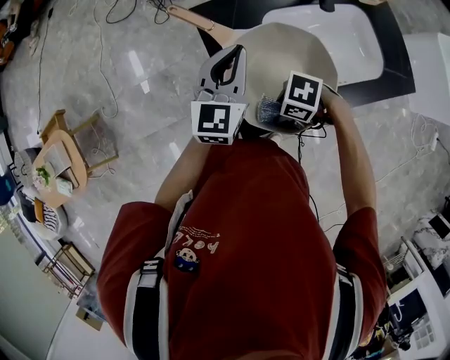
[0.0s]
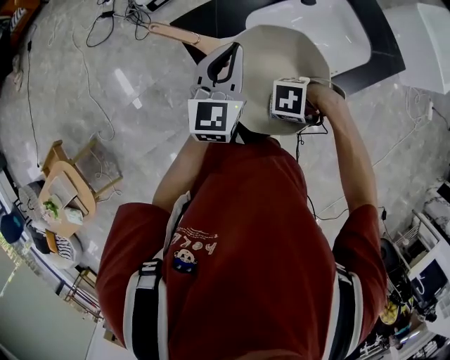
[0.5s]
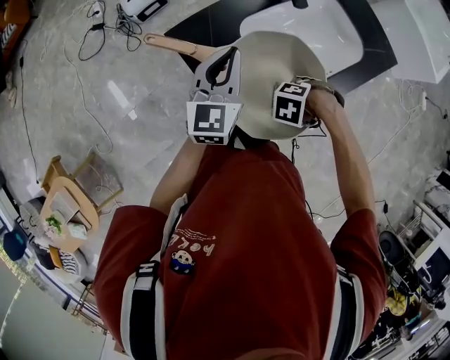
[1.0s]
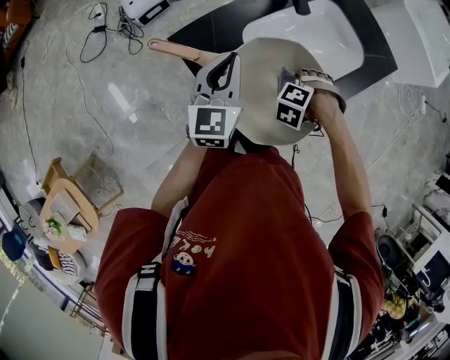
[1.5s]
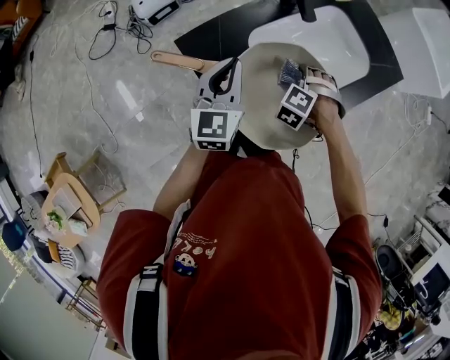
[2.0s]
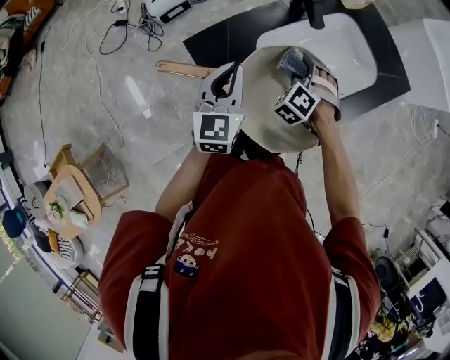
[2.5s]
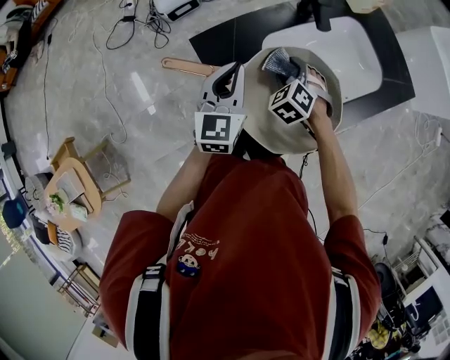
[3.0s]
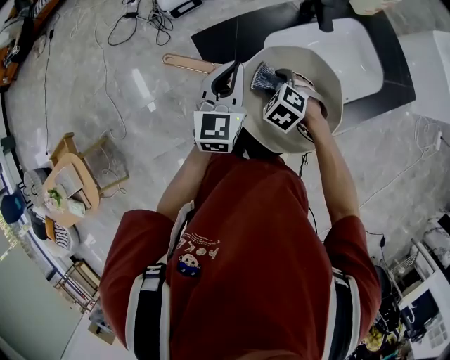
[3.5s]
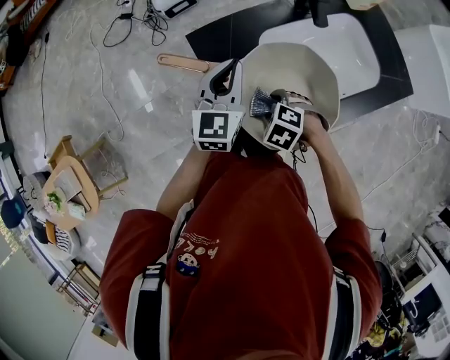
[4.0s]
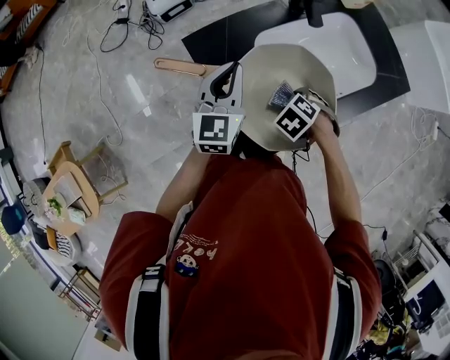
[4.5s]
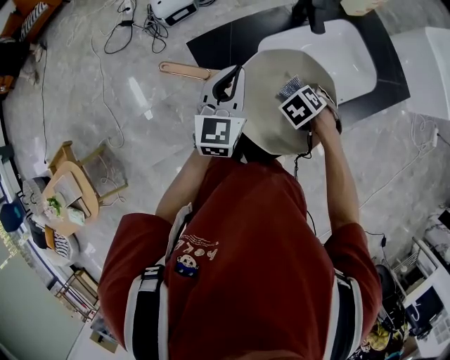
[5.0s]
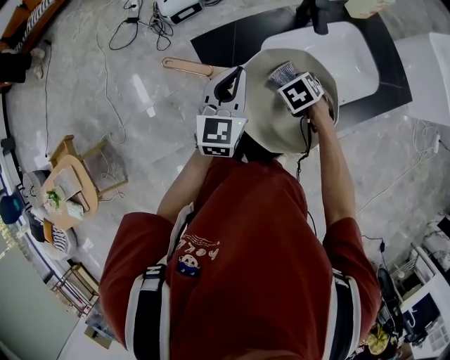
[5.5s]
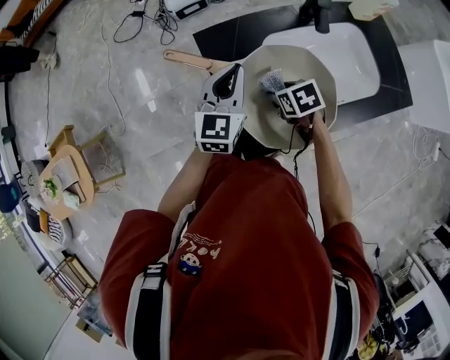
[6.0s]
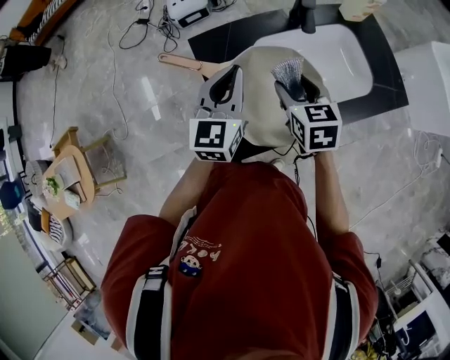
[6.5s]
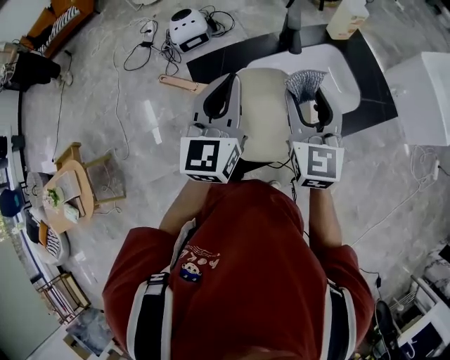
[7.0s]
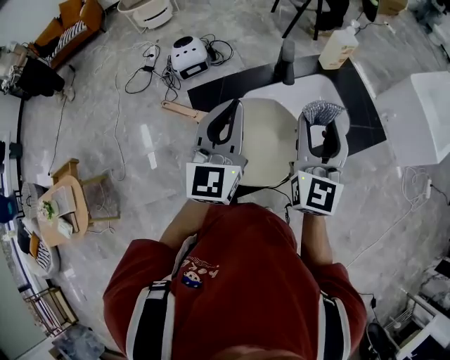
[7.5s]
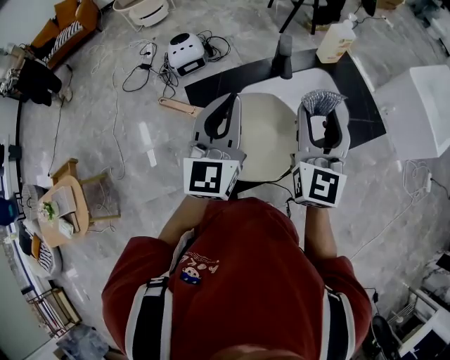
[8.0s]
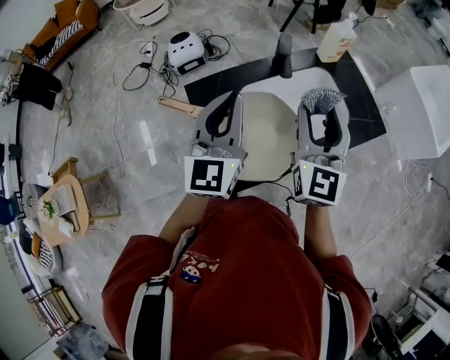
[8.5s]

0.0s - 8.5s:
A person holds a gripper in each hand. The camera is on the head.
0.0s - 2.0s: The left gripper ends up some 5 cm from where it was. Meanwhile the right gripper ends up roughly 20 cm from where it was, and changes its angle by some 60 degrees.
2.0s - 4.0s: The right gripper shifts by some 15 cm, and changes its angle by some 30 degrees.
4.0s - 6.5s: The left gripper goes roughly 5 cm upward; the right gripper is displaced upward by approximately 15 cm, and points its fingers roughly 40 degrees further upward.
6.5s - 8.5s: The right gripper goes approximately 20 cm upward and to the right, and angles its fingers upward, by approximately 40 degrees. The left gripper travels upward by roughly 15 cm.

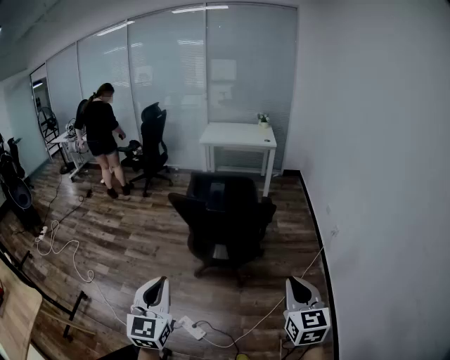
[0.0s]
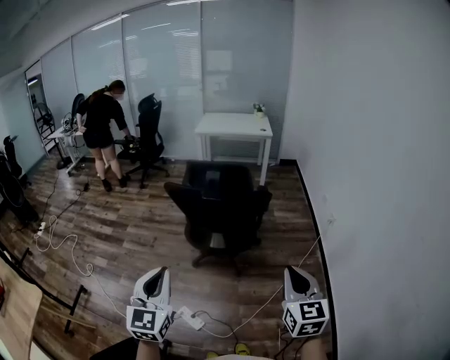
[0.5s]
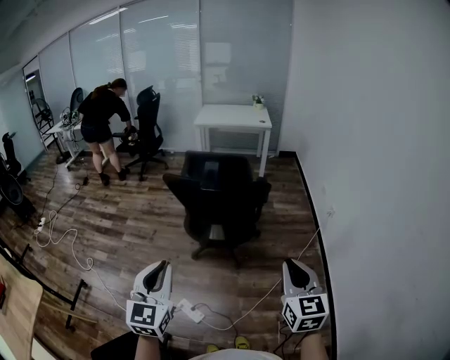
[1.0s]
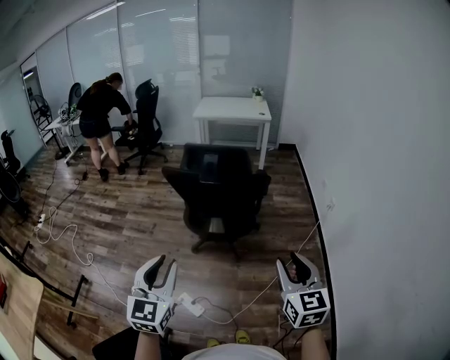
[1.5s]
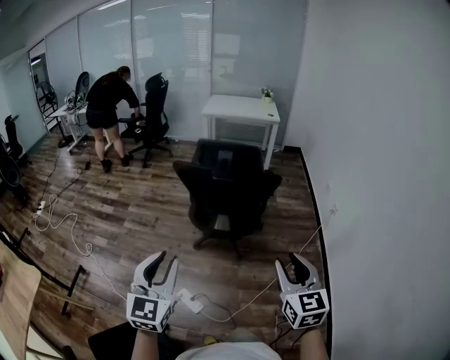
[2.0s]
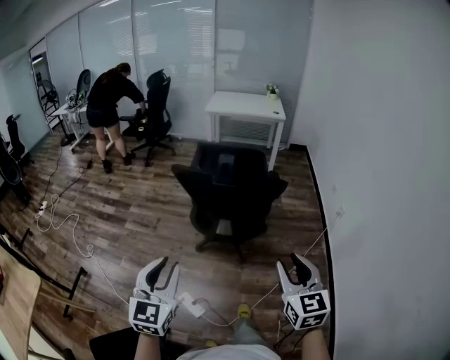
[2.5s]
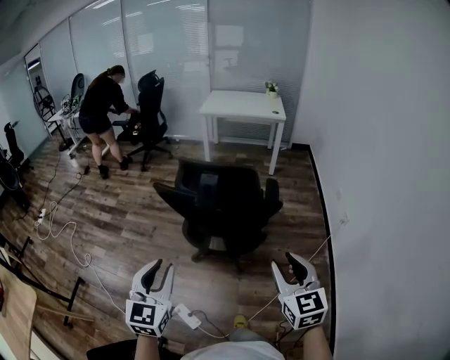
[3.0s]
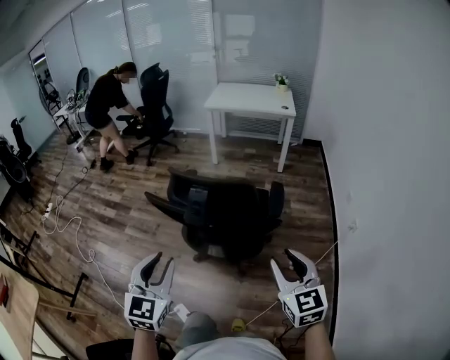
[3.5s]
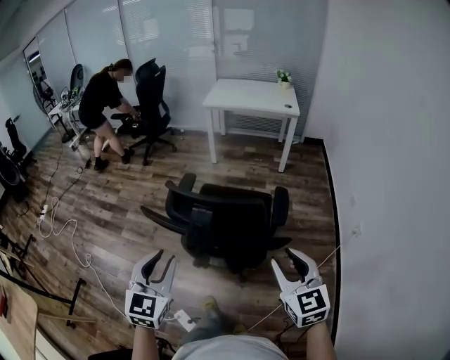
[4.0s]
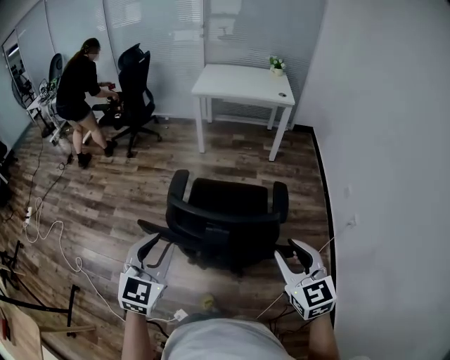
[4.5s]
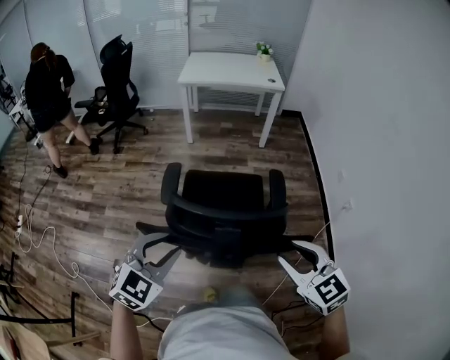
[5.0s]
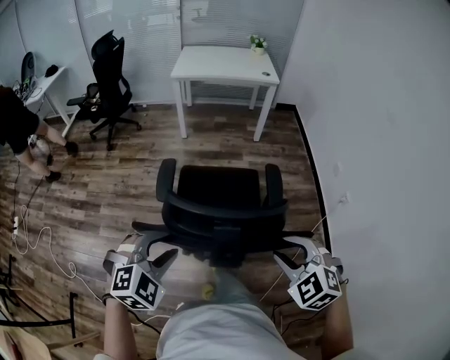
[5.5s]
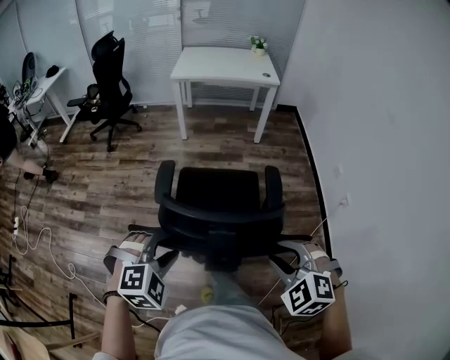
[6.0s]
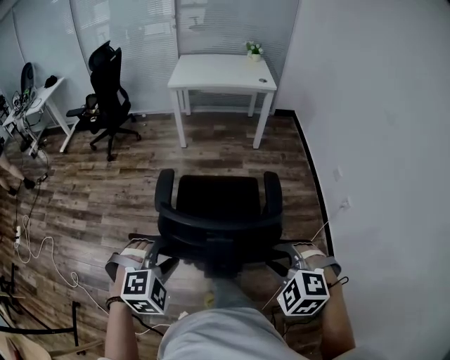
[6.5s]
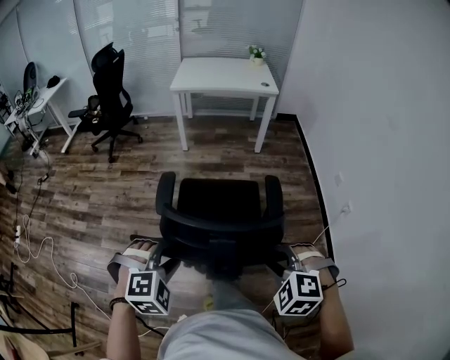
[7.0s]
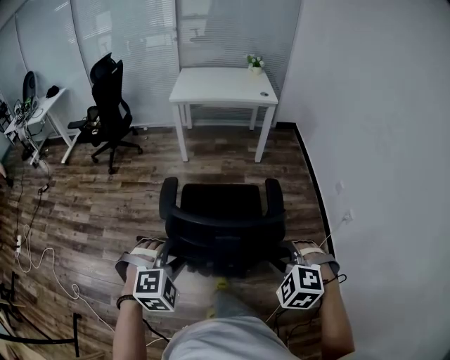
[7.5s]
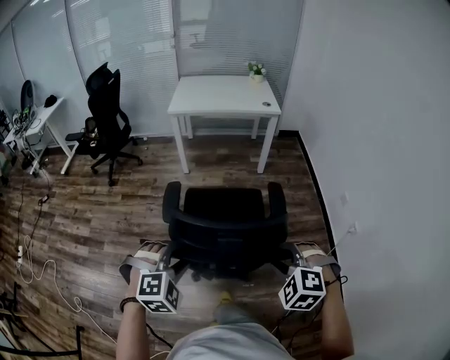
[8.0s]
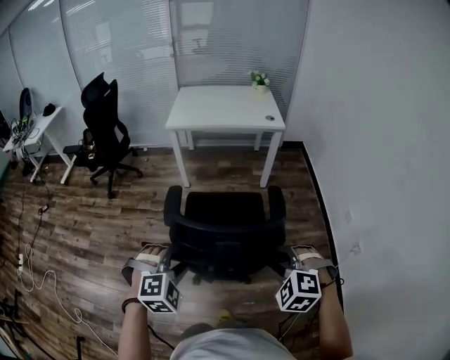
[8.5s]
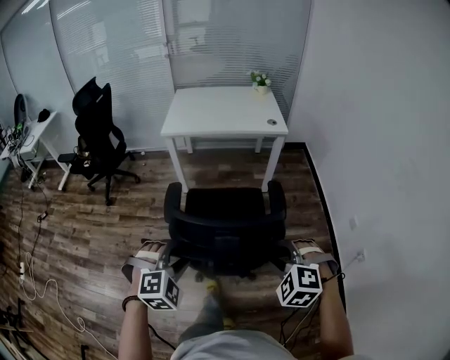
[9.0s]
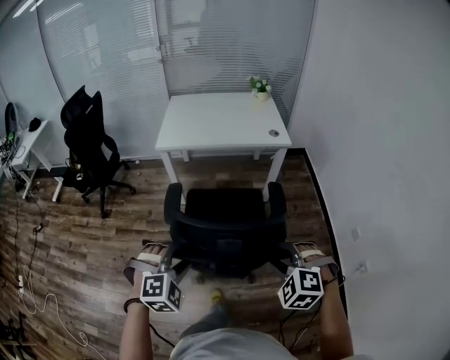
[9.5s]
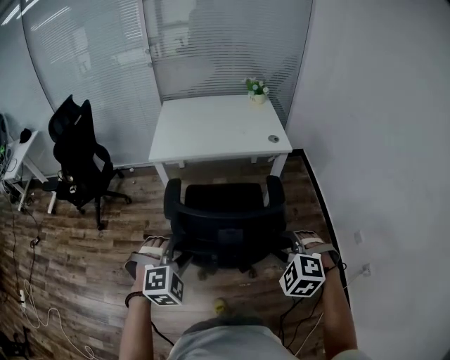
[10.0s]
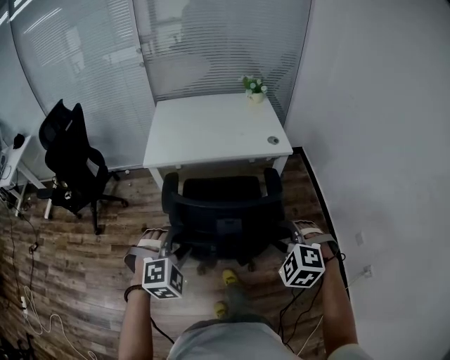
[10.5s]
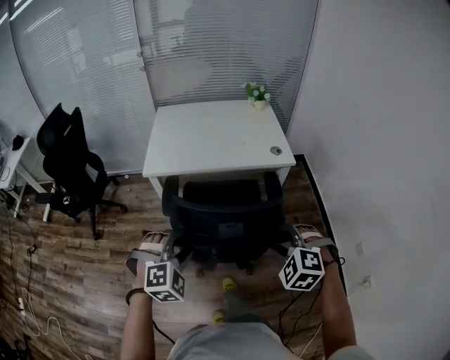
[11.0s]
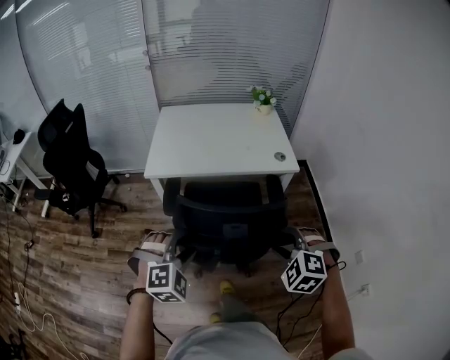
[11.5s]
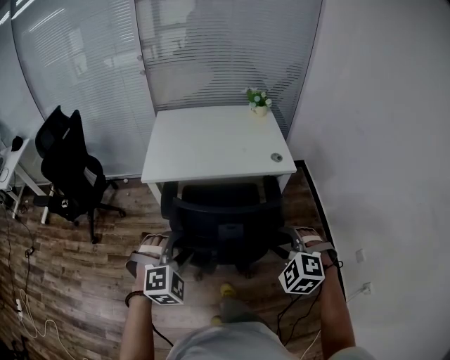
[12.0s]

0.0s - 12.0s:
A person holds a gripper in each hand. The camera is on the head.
0.0s - 2.0s: The right gripper changes place by approximately 5 cm, and opens, while the left gripper opens.
2.0s - 4.0s: The pair of grippers is taken forward, some 50 cm.
4.0s - 6.0s: The right gripper travels to the left, forward and downward by roughly 15 cm, and angles its fingers downward, by approximately 30 degrees; the left gripper goes some 20 cm forward, downward and to the left, and points its fingers roughly 40 degrees further downward.
6.0s - 8.0s: Both grippers travel together forward, approximately 20 cm.
8.0s - 10.0s: The pair of grippers is taken forward, roughly 50 cm.
10.0s - 12.0s: The grippers both shift forward by about 20 cm.

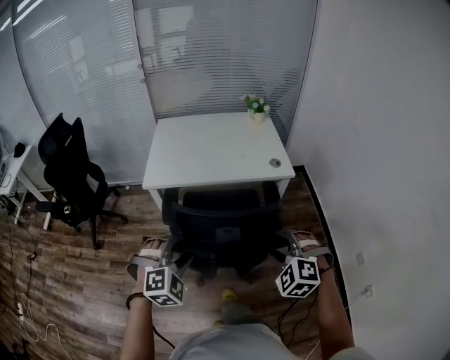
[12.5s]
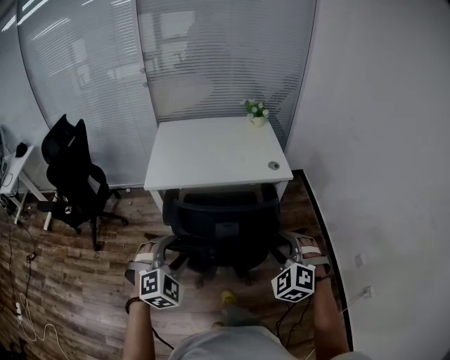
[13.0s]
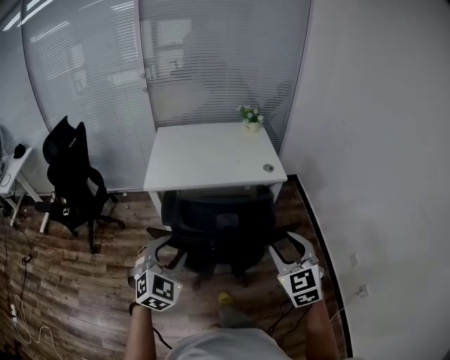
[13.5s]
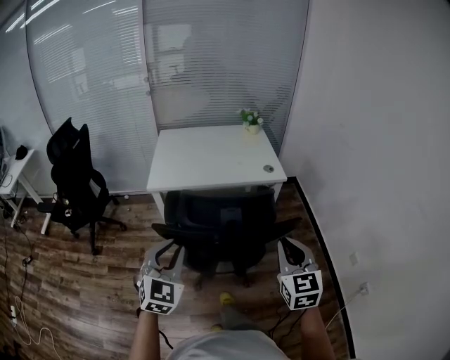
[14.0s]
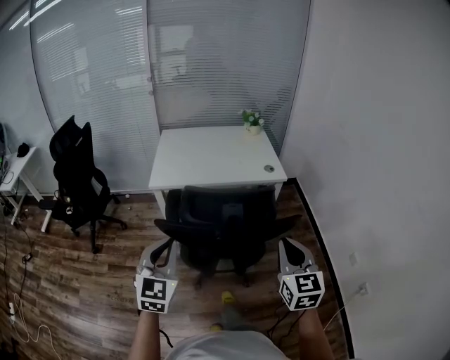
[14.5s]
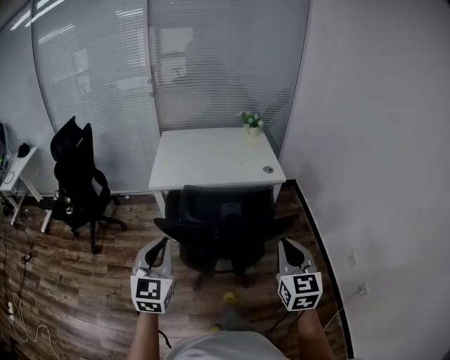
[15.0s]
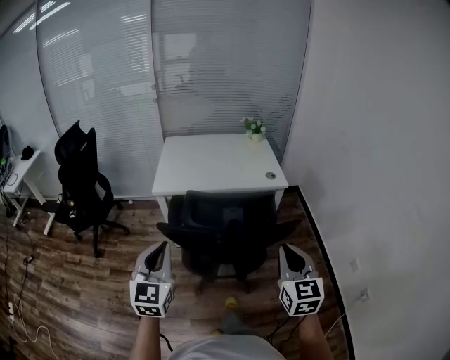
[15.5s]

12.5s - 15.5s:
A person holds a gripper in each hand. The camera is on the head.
12.5s - 14.0s: Both grippers travel together backward and upward, some 15 cm. The left gripper rotates approximately 40 degrees, and closes its fingers. Meanwhile the right gripper rotates around the line of its fingers by about 50 degrees, clockwise from behind, and closes up.
14.0s - 15.5s: The left gripper changes place by roughly 5 cm, and changes its angle by roughly 20 degrees.

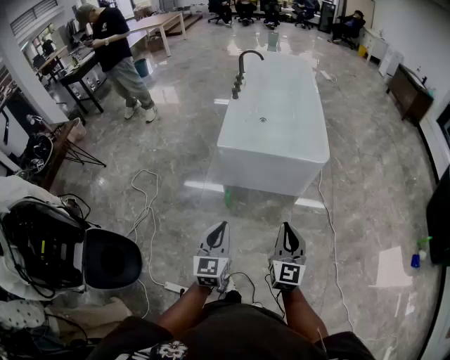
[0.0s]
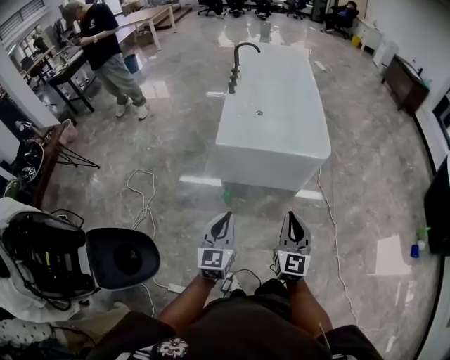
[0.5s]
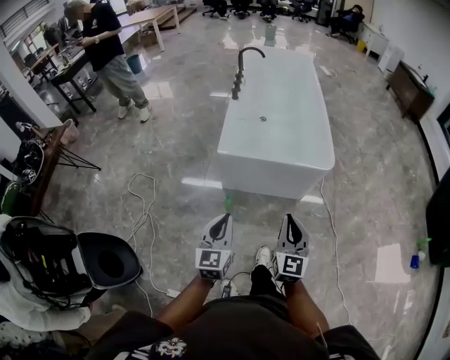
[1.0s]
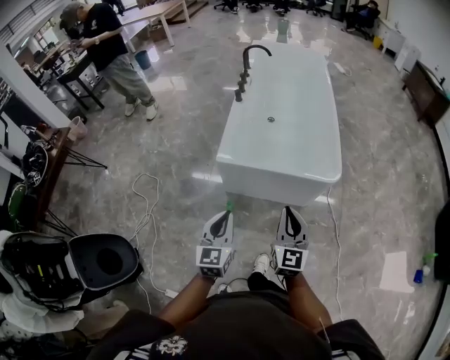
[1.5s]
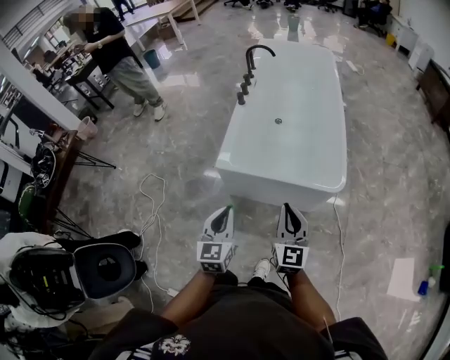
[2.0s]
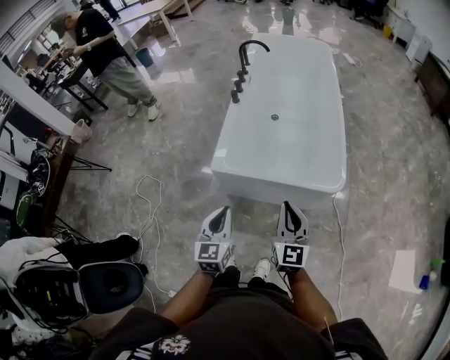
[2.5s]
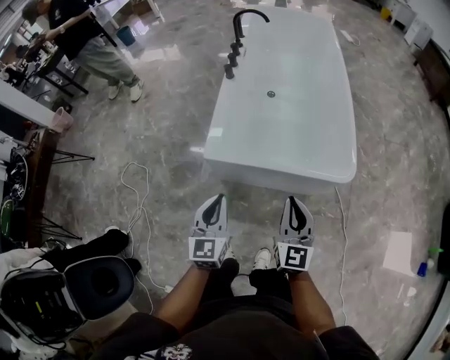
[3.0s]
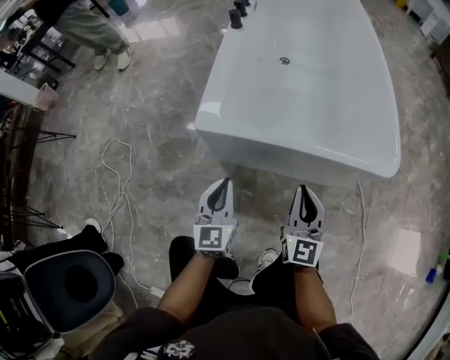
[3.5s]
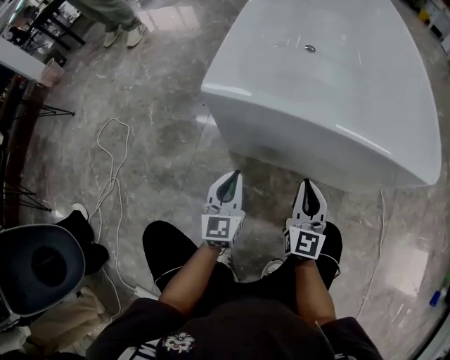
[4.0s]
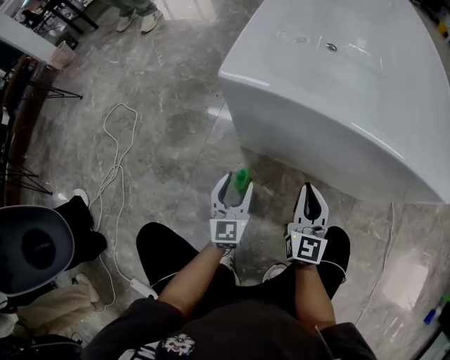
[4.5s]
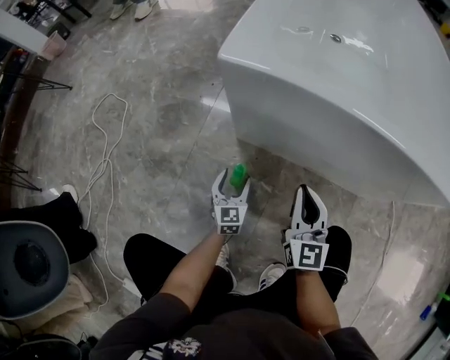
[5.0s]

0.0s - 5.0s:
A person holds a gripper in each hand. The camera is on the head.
0.0s - 2.5s: Both grippers travel together forward, roughly 35 cm.
2.5s - 5.0s: Both grippers move downward, about 70 cm. The left gripper opens.
